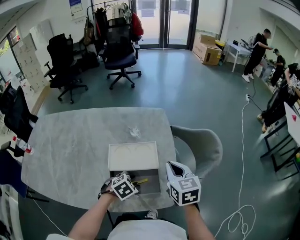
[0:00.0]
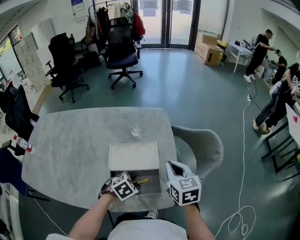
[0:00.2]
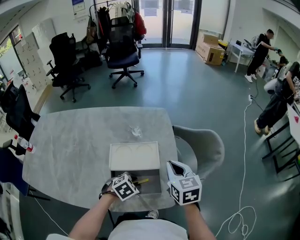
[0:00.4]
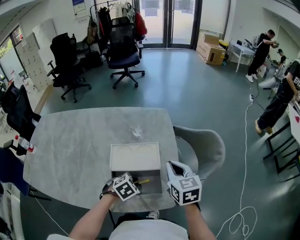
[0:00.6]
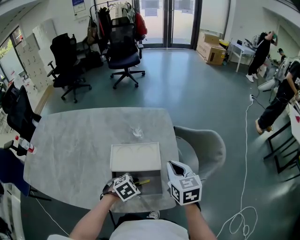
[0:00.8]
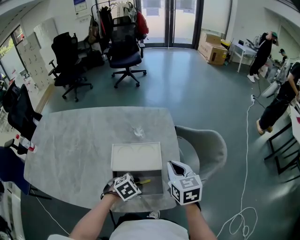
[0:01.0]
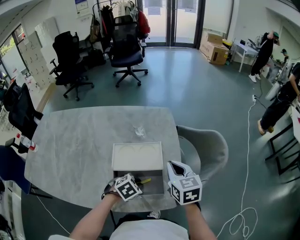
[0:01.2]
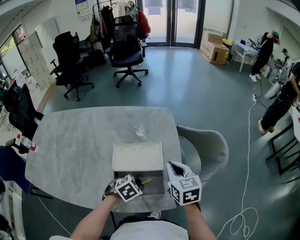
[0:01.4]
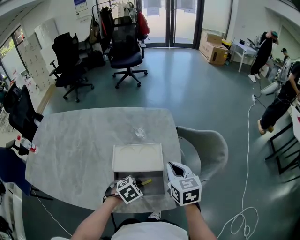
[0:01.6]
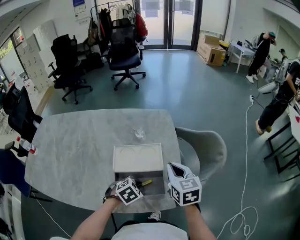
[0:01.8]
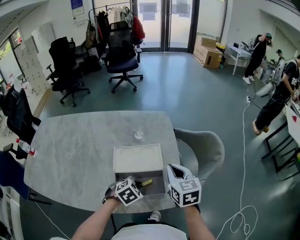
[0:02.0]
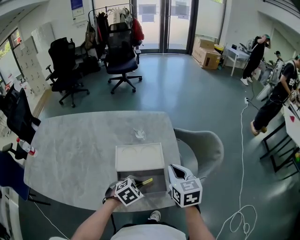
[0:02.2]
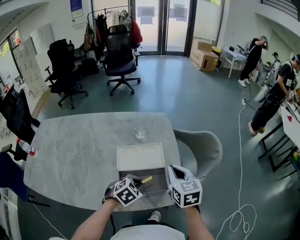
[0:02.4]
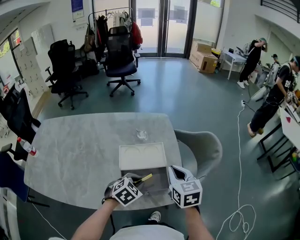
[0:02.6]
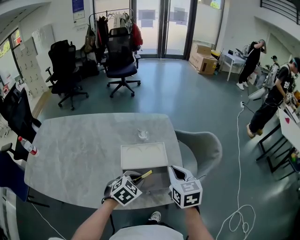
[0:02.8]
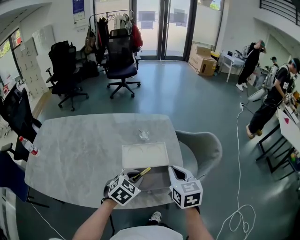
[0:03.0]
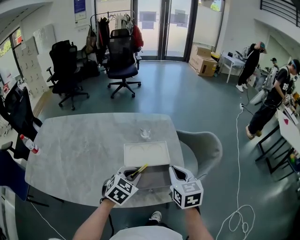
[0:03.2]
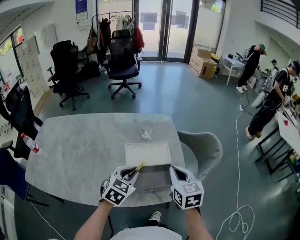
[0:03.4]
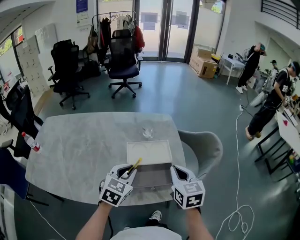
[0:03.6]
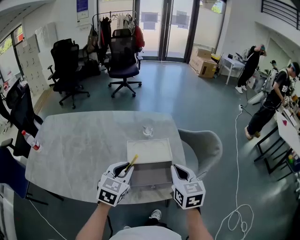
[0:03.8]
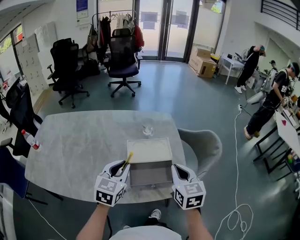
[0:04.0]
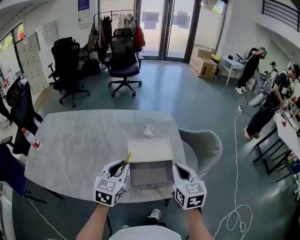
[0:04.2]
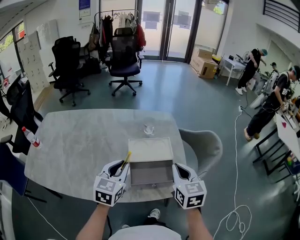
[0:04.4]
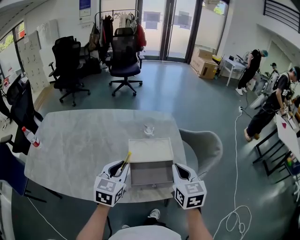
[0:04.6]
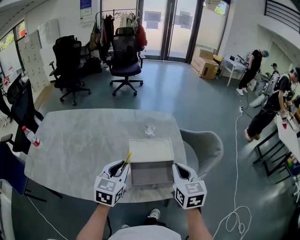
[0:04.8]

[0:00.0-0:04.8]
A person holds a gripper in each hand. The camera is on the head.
0:00.0 to 0:01.6: The left gripper closes.
0:01.6 to 0:03.2: The right gripper is displaced backward and upward by roughly 10 cm. Meanwhile the left gripper goes approximately 15 cm upward, and rotates roughly 30 degrees.
0:03.2 to 0:04.8: The left gripper moves to the left and upward, some 10 cm, and rotates approximately 30 degrees.

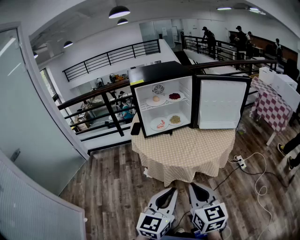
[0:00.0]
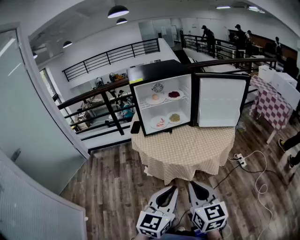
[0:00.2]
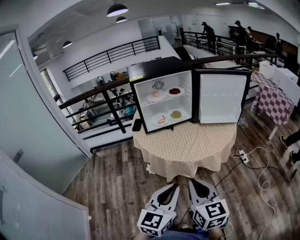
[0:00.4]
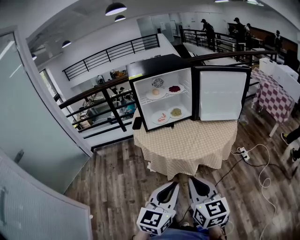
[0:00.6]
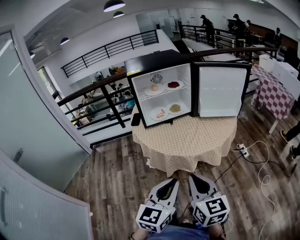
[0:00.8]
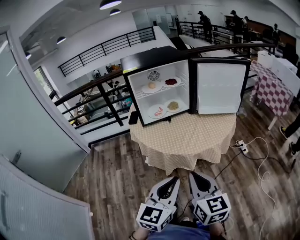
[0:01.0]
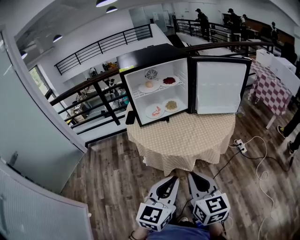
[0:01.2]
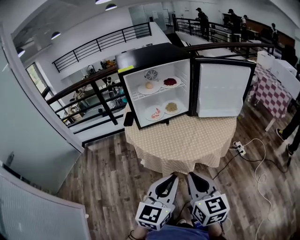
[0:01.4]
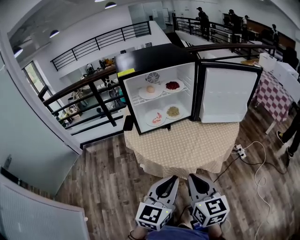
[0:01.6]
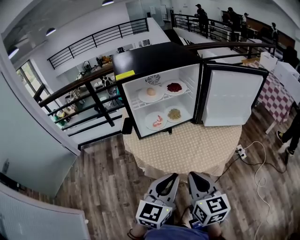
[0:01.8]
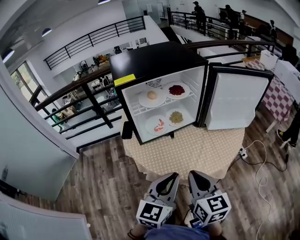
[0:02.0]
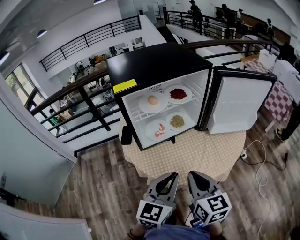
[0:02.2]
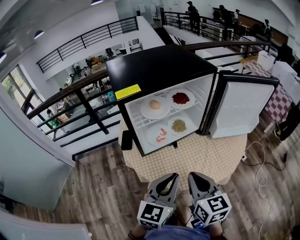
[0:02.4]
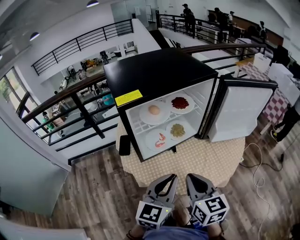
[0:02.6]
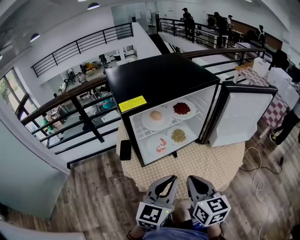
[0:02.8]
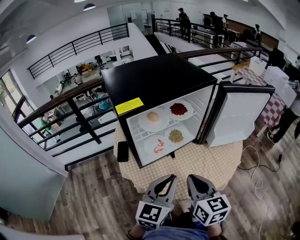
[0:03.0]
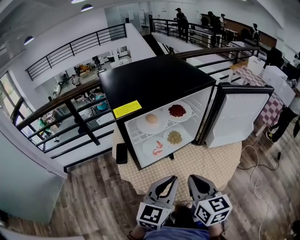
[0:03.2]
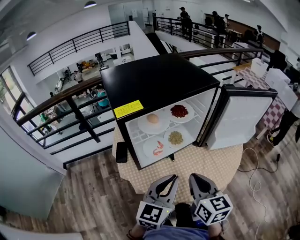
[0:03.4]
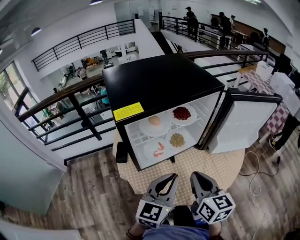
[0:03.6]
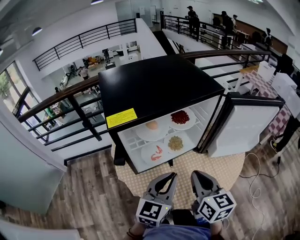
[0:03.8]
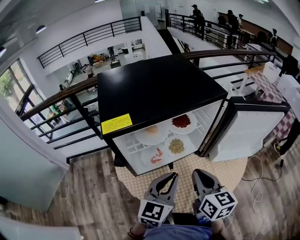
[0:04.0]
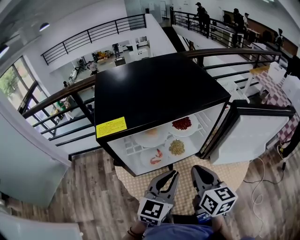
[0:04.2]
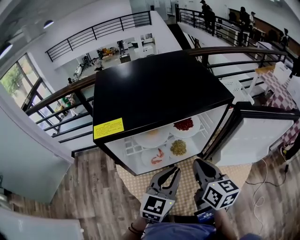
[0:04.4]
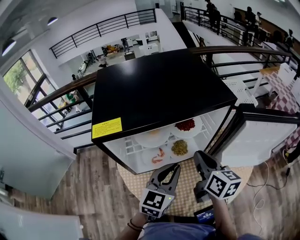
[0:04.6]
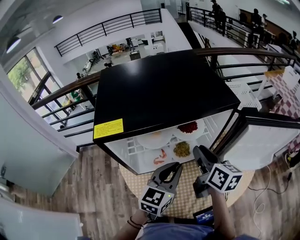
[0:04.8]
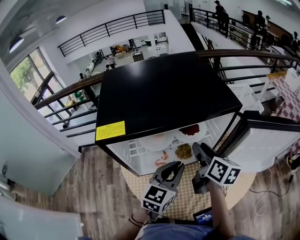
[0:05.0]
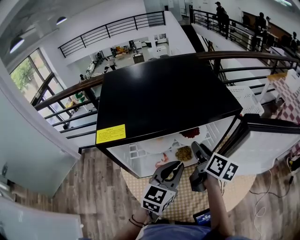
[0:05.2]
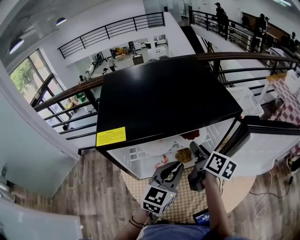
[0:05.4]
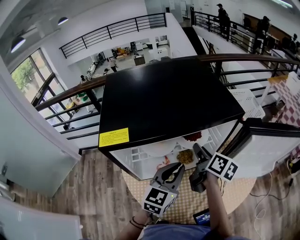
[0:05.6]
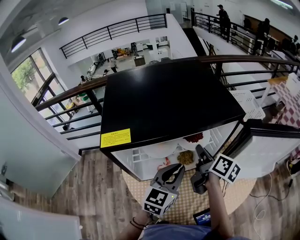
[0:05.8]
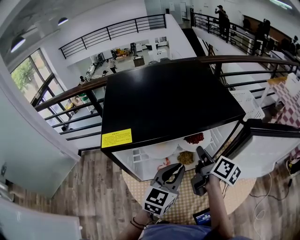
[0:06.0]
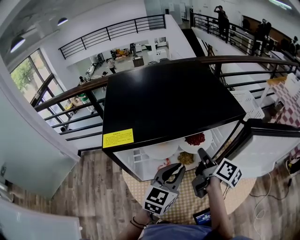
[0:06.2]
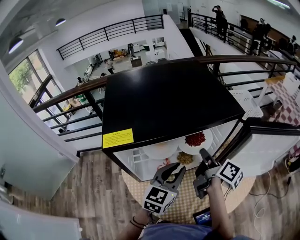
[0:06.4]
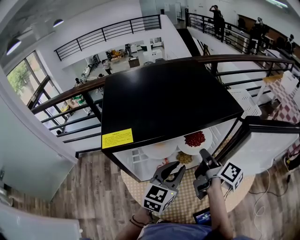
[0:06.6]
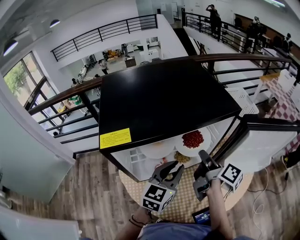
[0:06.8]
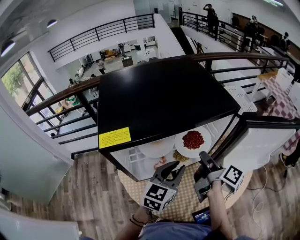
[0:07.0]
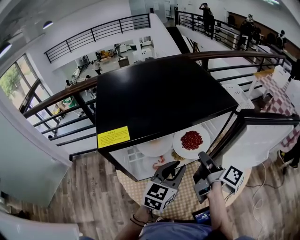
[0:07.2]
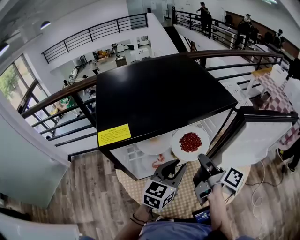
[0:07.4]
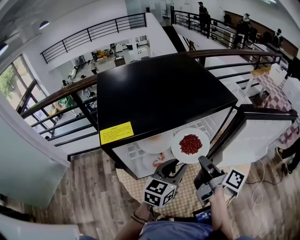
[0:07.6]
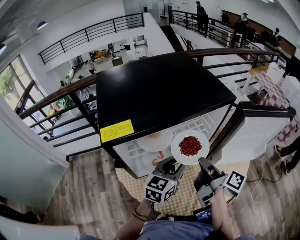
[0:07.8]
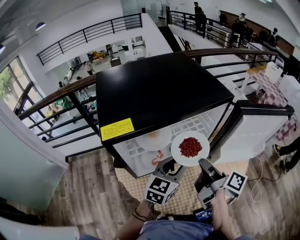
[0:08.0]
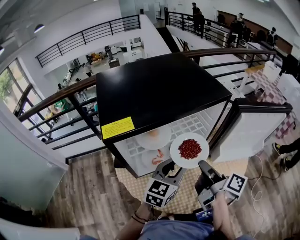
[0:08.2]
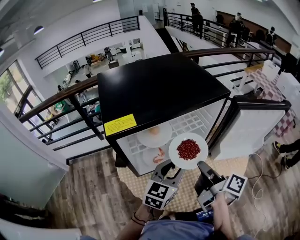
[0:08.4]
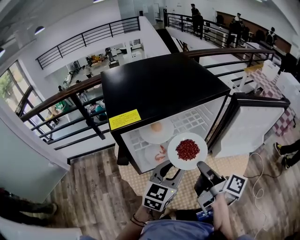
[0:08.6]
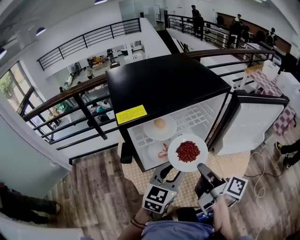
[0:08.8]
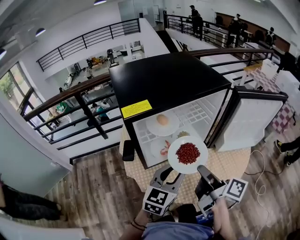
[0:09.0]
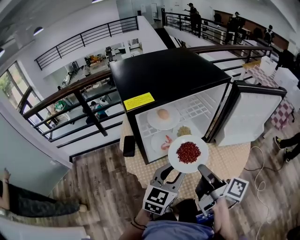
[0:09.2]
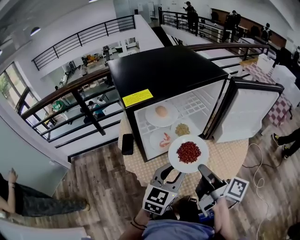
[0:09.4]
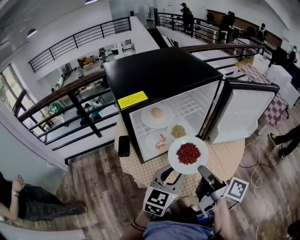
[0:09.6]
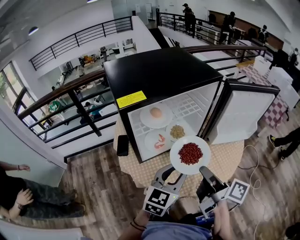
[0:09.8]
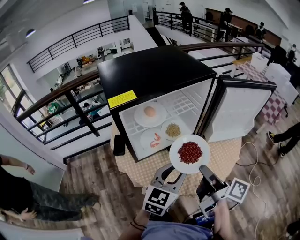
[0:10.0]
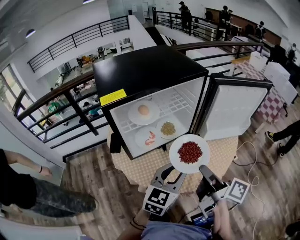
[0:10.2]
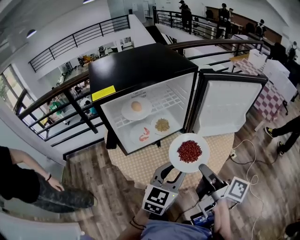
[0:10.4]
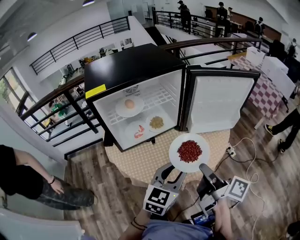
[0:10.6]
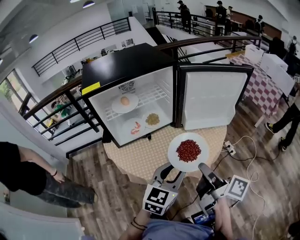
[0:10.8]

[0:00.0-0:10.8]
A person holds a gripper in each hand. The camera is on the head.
0:00.0 to 0:01.6: Both grippers move forward, about 15 cm.
0:01.6 to 0:03.0: The grippers both shift forward and to the left by some 25 cm.
0:03.0 to 0:04.6: The two grippers go roughly 20 cm forward. The right gripper rotates about 20 degrees.
0:04.6 to 0:06.2: The right gripper shifts roughly 5 cm forward, swivels roughly 30 degrees, and opens and closes again.
0:06.2 to 0:07.8: The right gripper is displaced backward by some 10 cm.
0:07.8 to 0:09.2: The two grippers go about 15 cm backward.
0:09.2 to 0:10.8: Both grippers move to the right and backward, about 25 cm.

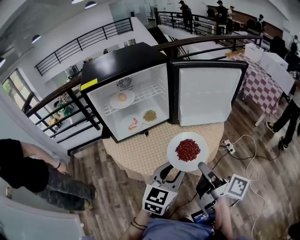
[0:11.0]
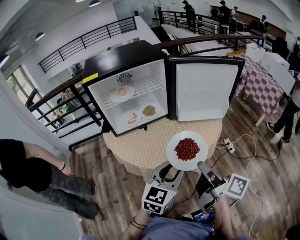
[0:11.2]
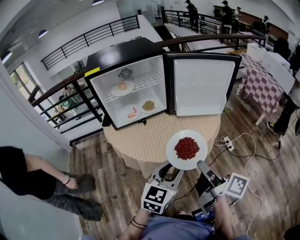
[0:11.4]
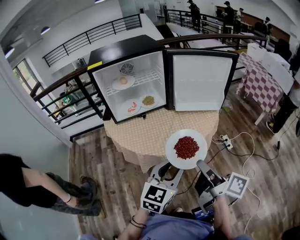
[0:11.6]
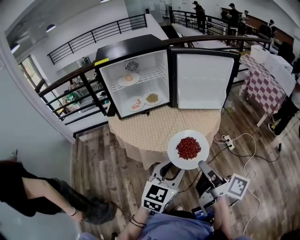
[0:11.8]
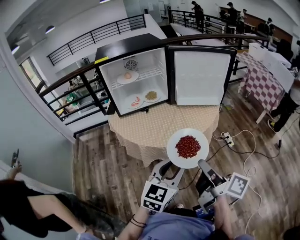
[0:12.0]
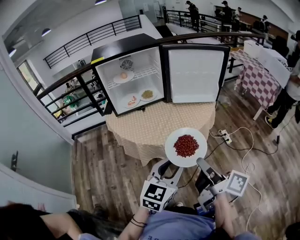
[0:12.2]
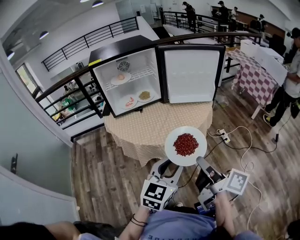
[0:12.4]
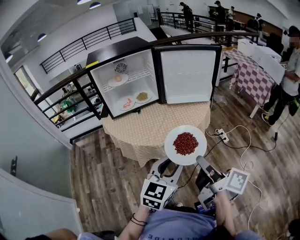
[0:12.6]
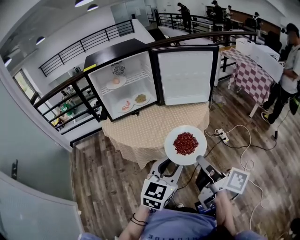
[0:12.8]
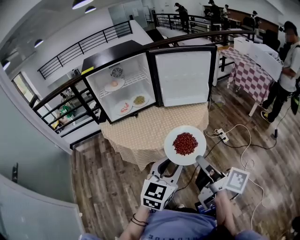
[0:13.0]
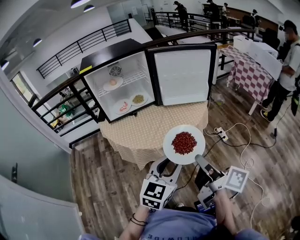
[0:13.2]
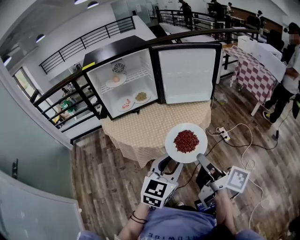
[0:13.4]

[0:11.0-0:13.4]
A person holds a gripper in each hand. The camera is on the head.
0:11.0 to 0:12.2: The grippers both shift backward by about 20 cm.
0:12.2 to 0:13.4: There are only small adjustments of the grippers.

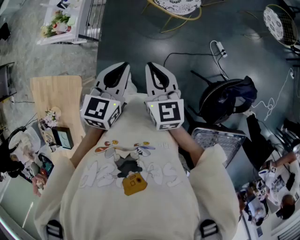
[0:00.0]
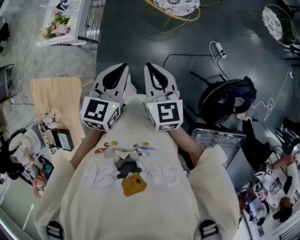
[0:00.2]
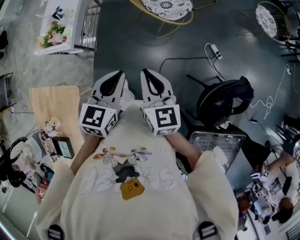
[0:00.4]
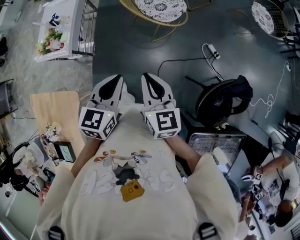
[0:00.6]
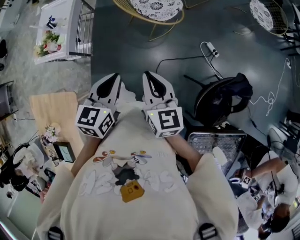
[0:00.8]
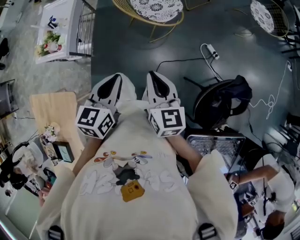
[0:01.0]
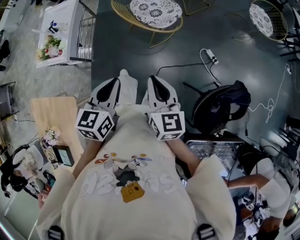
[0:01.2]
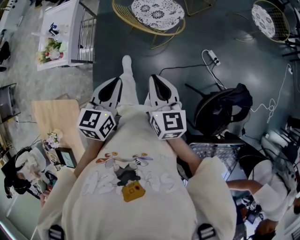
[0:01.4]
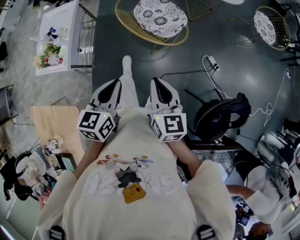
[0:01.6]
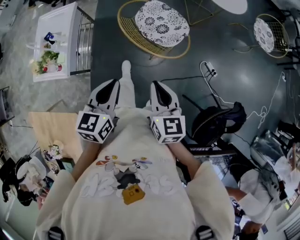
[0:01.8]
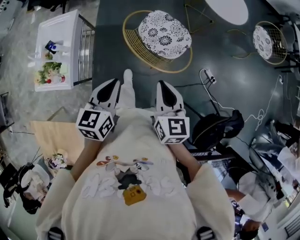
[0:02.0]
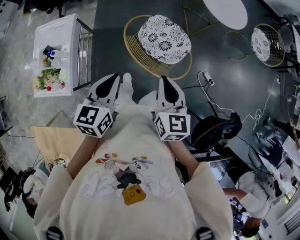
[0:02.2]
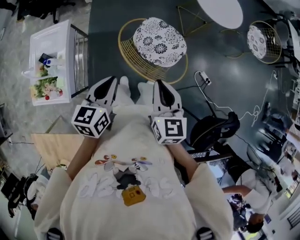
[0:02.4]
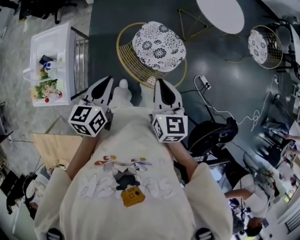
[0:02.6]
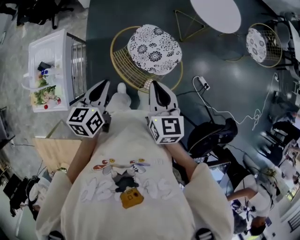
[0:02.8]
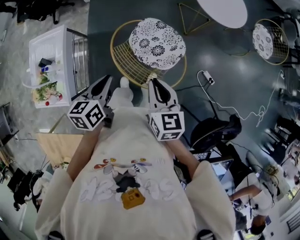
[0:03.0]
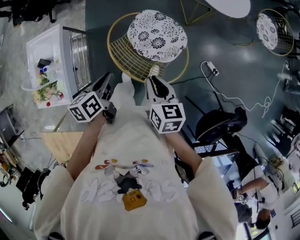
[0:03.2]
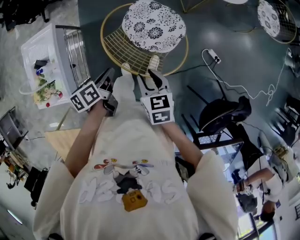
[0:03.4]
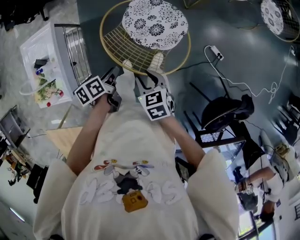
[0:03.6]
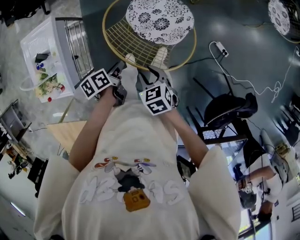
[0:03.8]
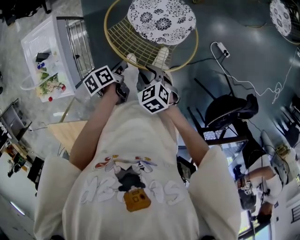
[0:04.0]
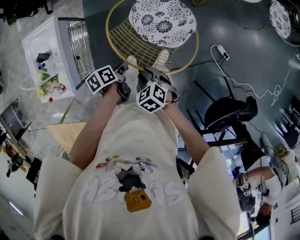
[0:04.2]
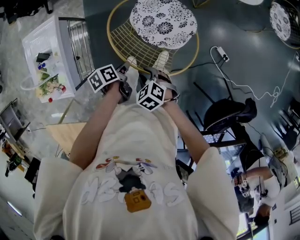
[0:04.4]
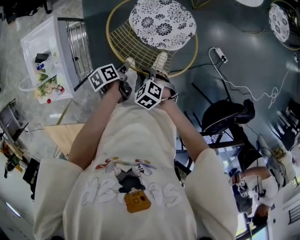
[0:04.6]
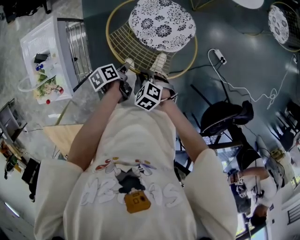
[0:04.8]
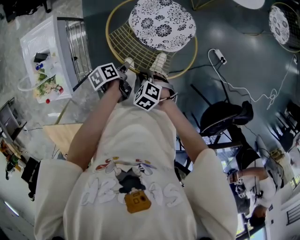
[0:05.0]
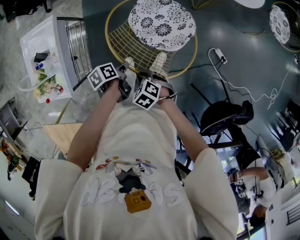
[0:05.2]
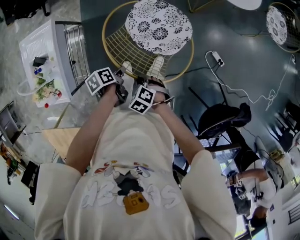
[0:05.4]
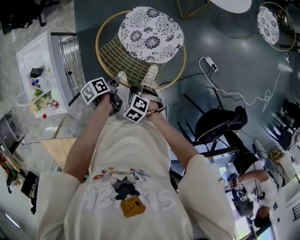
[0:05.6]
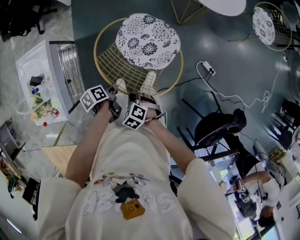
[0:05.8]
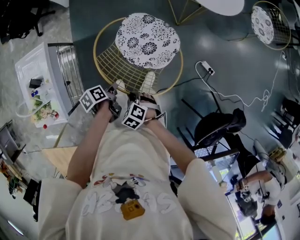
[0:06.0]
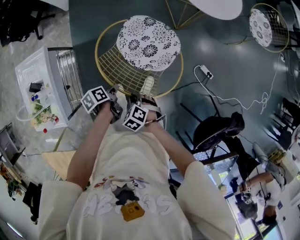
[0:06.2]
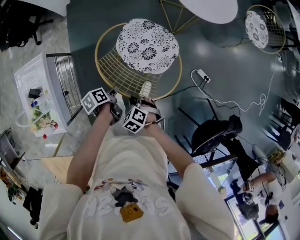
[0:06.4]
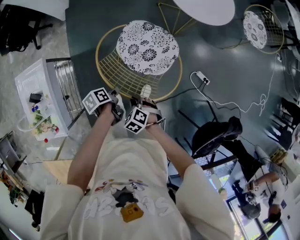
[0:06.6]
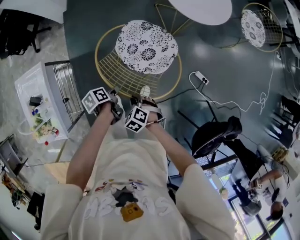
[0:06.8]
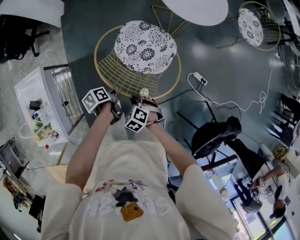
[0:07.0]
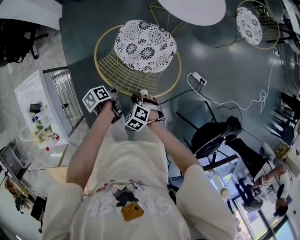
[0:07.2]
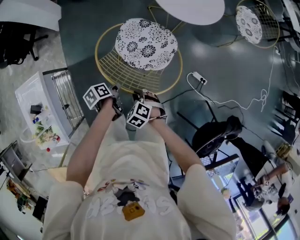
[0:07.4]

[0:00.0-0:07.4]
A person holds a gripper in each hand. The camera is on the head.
0:00.0 to 0:01.4: The left gripper heads forward, covering approximately 5 cm. The right gripper shifts about 10 cm to the right and forward.
0:01.4 to 0:03.0: Both grippers move forward, about 35 cm.
0:03.0 to 0:04.4: Both grippers move downward, some 25 cm. The right gripper tips its fingers downward by some 30 degrees, and opens, while the left gripper turns by some 40 degrees.
0:04.4 to 0:06.0: There are only small adjustments of the grippers.
0:06.0 to 0:07.4: Both grippers travel together forward and to the right, some 15 cm.
